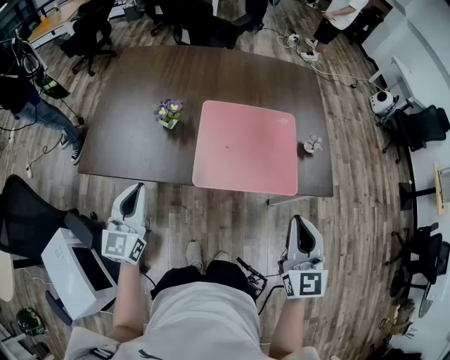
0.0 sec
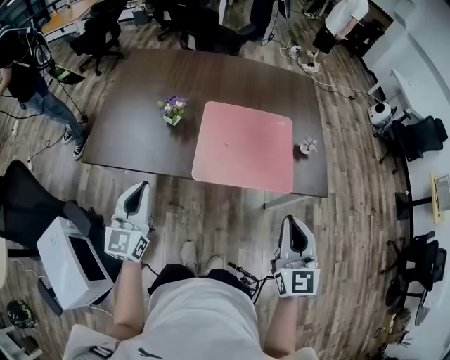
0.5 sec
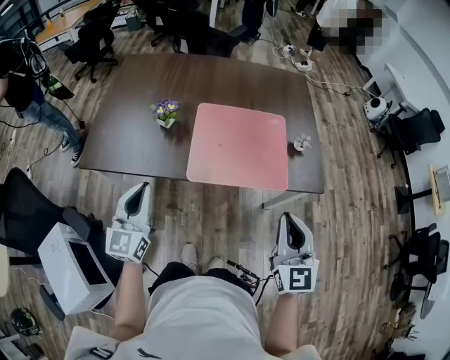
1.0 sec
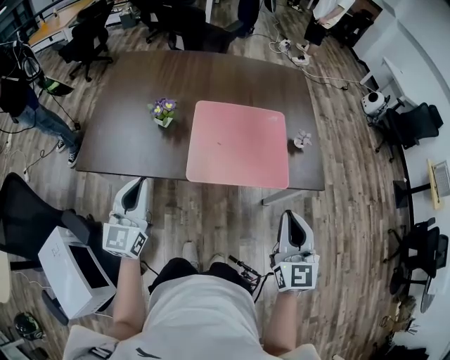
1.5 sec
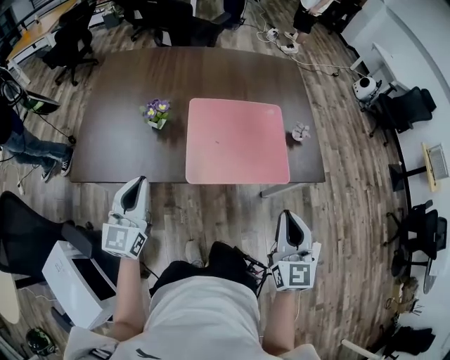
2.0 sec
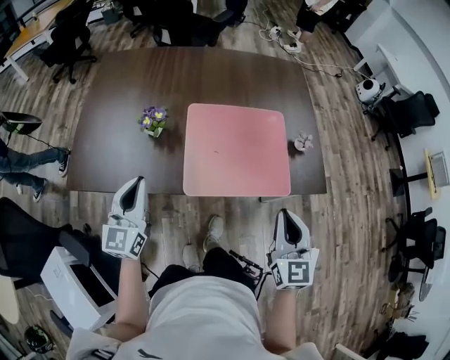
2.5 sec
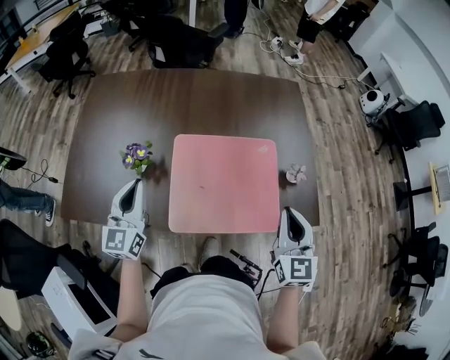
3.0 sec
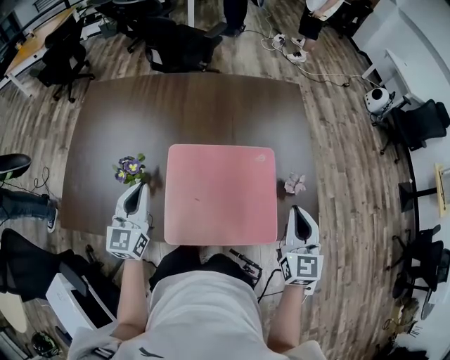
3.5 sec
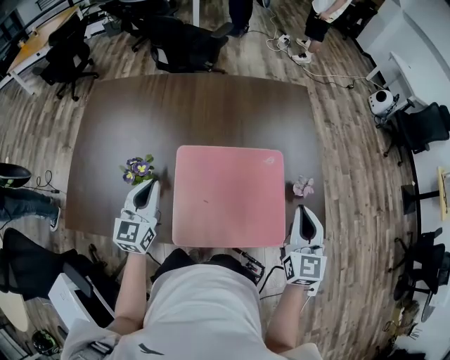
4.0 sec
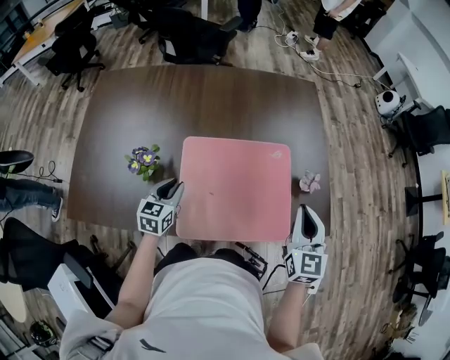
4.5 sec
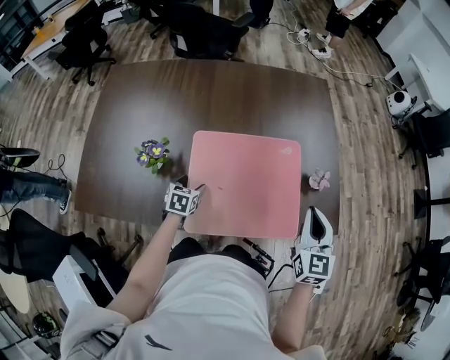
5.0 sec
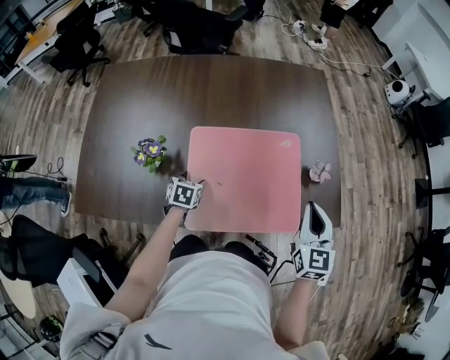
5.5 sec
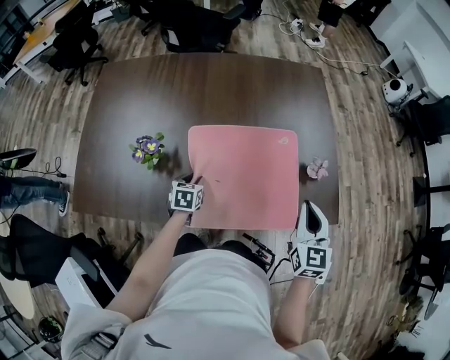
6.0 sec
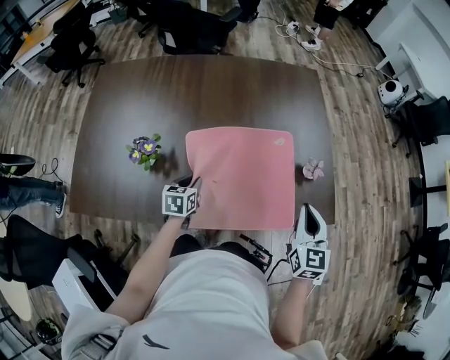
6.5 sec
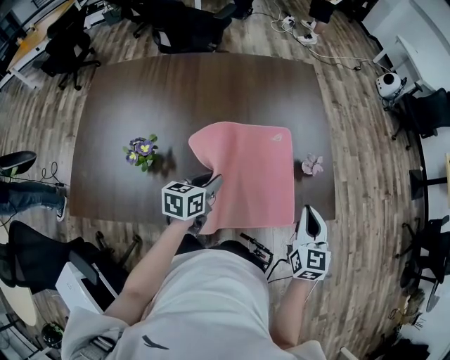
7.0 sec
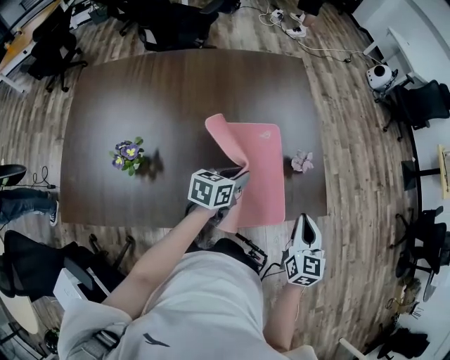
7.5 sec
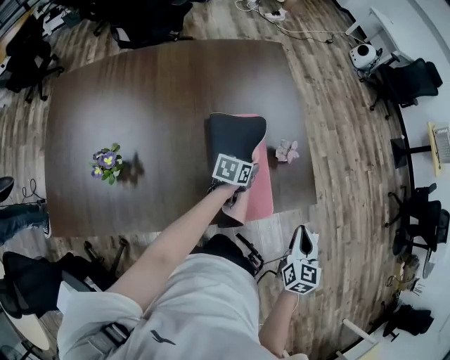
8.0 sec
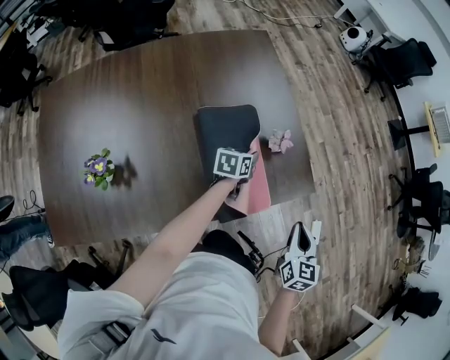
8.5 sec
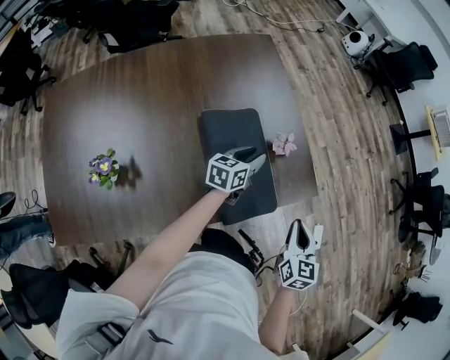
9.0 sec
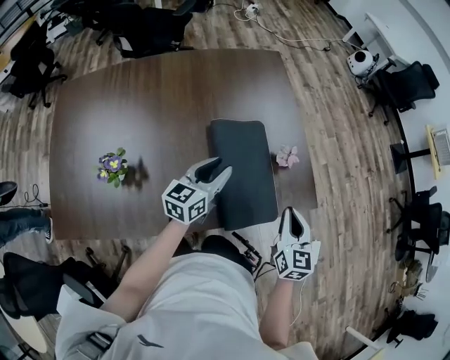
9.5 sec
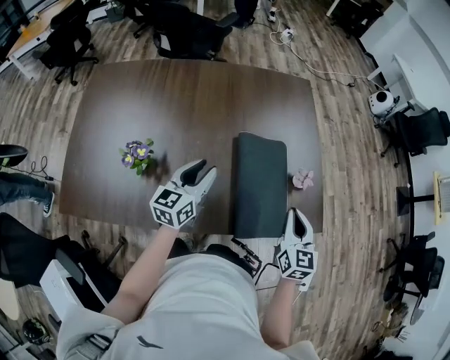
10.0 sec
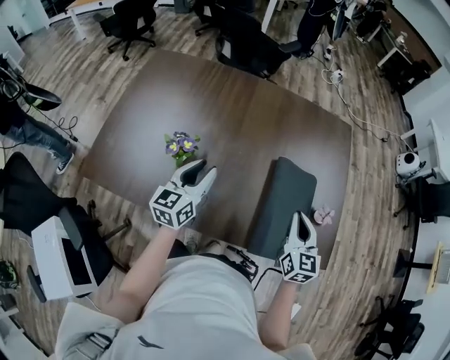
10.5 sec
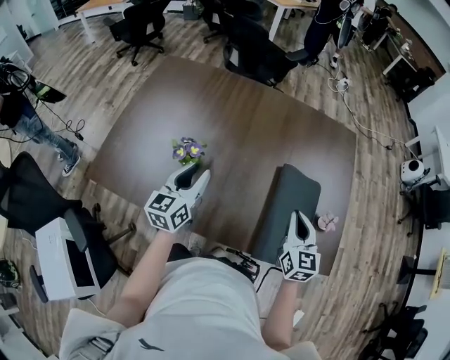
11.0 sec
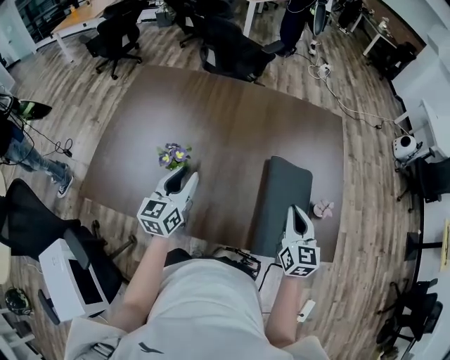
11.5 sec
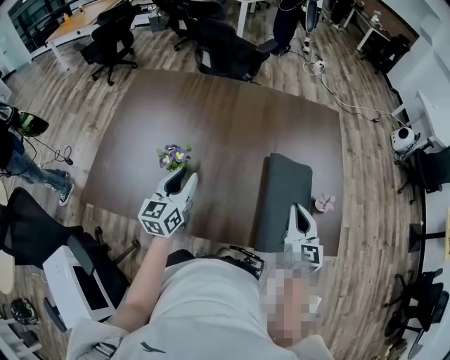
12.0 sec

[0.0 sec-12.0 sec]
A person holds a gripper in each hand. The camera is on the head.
2.0 sec to 4.0 sec: Both grippers travel together forward, about 25 cm.
4.0 sec to 6.0 sec: The left gripper heads downward, covering about 25 cm, angles its fingers downward, by about 40 degrees, and opens up. Meanwhile the right gripper moves downward, approximately 5 cm.
6.0 sec to 8.0 sec: The left gripper changes place by approximately 35 cm, and turns by approximately 40 degrees. Meanwhile the right gripper ends up approximately 15 cm from where it was, and changes its angle by some 30 degrees.
8.0 sec to 10.0 sec: The left gripper ends up some 30 cm from where it was, and turns by approximately 40 degrees, while the right gripper shifts by approximately 15 cm, and turns by about 20 degrees.
10.0 sec to 12.0 sec: The right gripper goes approximately 10 cm to the left. The left gripper goes about 15 cm to the left, and swivels roughly 20 degrees.

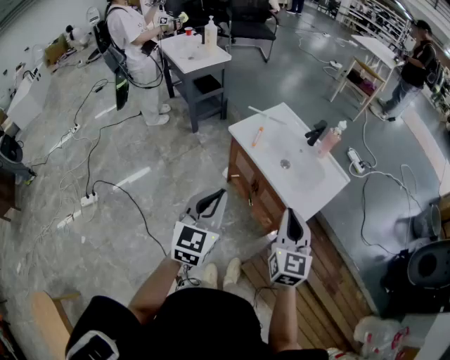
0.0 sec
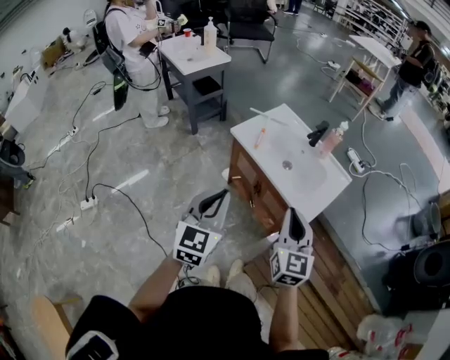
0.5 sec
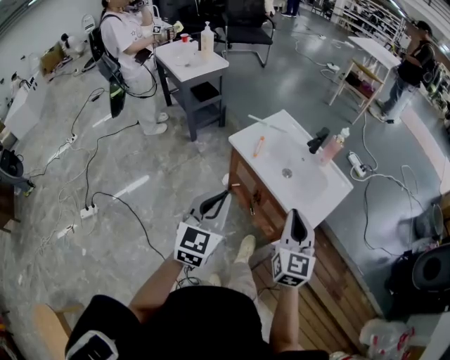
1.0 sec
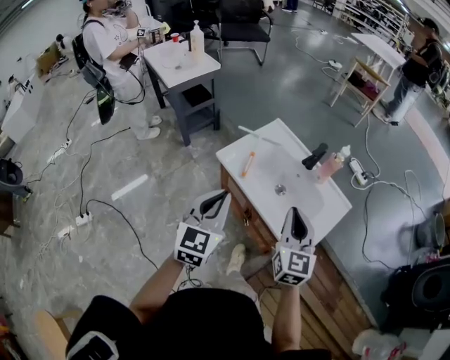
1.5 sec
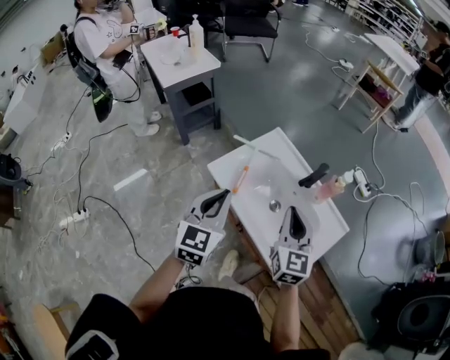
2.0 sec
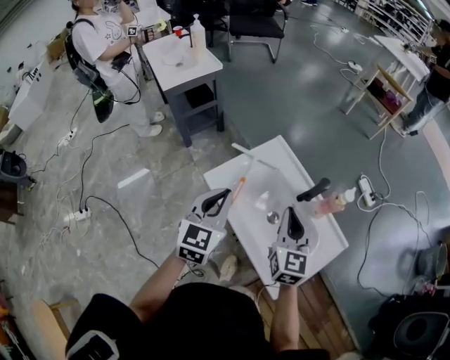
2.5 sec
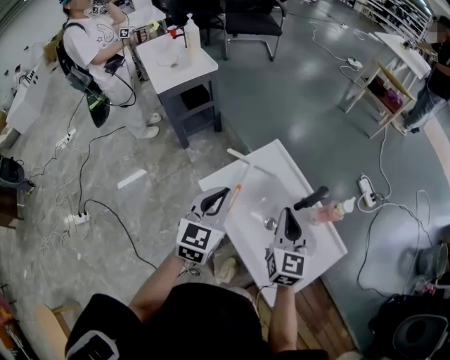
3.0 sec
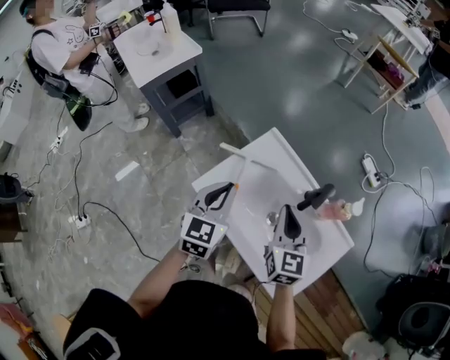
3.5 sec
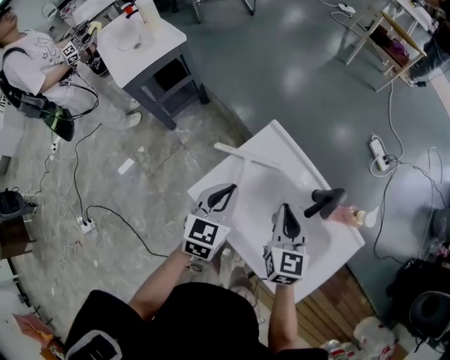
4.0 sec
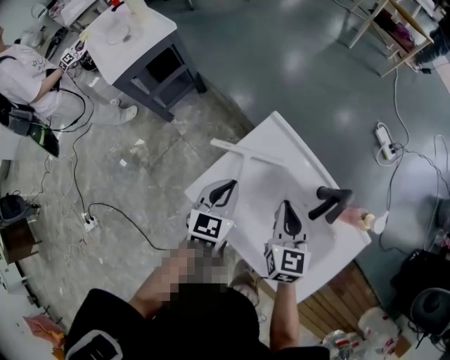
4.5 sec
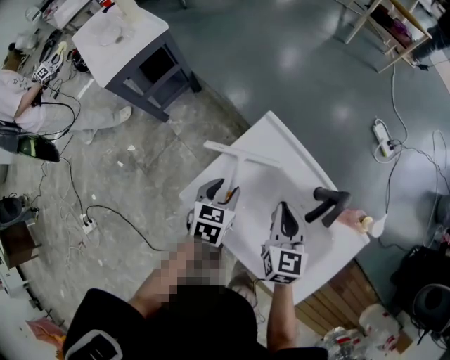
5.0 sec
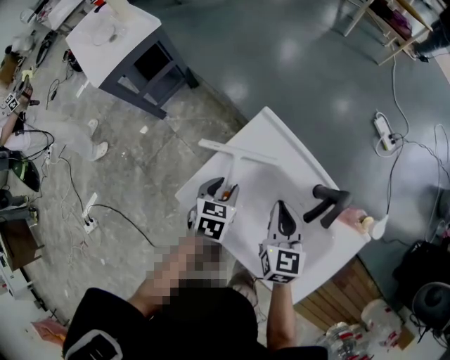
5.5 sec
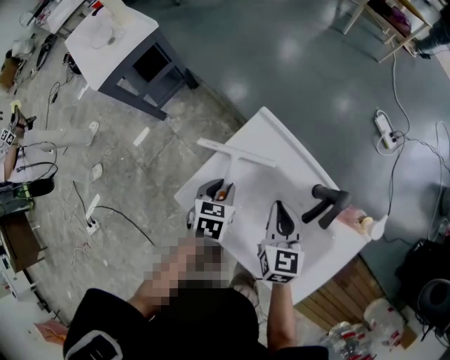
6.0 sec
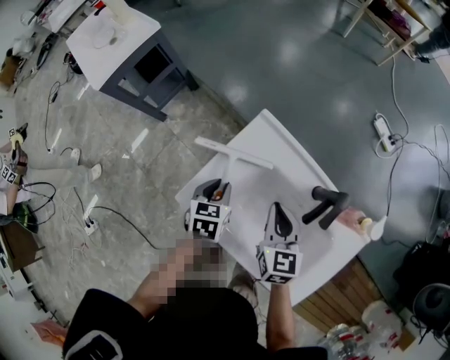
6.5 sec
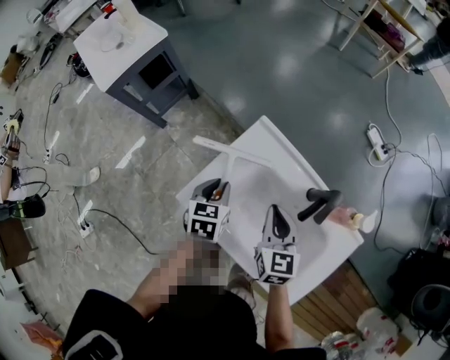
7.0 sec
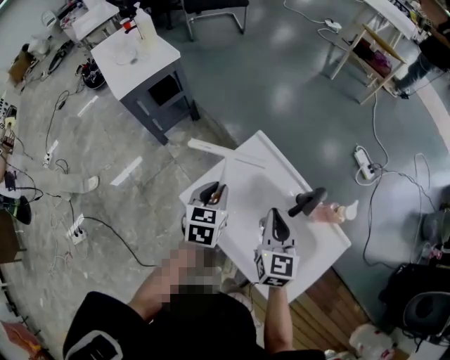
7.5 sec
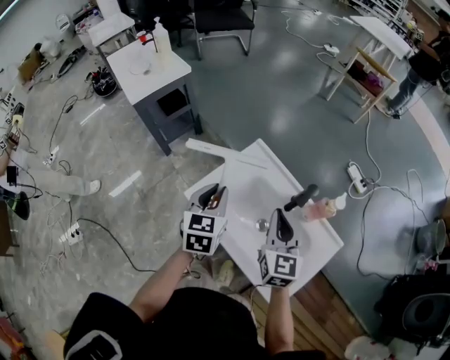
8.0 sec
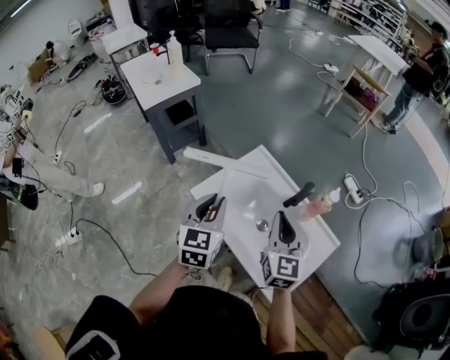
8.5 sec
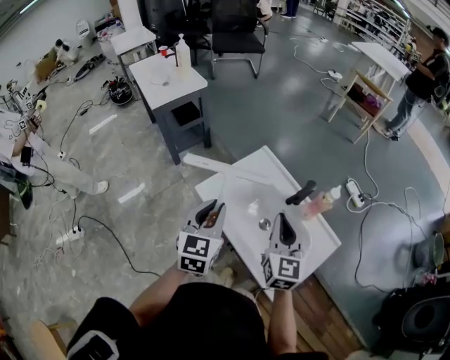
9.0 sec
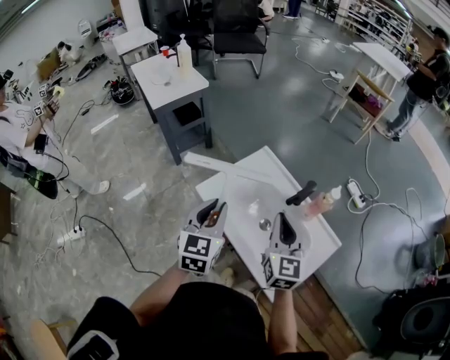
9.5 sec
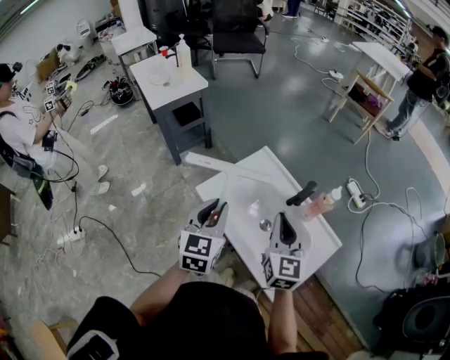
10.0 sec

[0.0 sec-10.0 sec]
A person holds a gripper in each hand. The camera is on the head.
0.0 sec to 2.0 sec: The two grippers go about 30 cm forward.
2.0 sec to 4.0 sec: Both grippers move forward and downward, approximately 25 cm.
4.0 sec to 6.0 sec: The left gripper goes approximately 15 cm downward, turns by roughly 30 degrees, and opens its fingers; the right gripper heads downward, covering approximately 5 cm.
6.0 sec to 8.0 sec: The right gripper is displaced upward and backward by approximately 20 cm. The left gripper goes some 20 cm upward, and turns by some 30 degrees.
8.0 sec to 10.0 sec: The right gripper moves backward, roughly 10 cm. Meanwhile the left gripper moves backward and upward, about 15 cm.

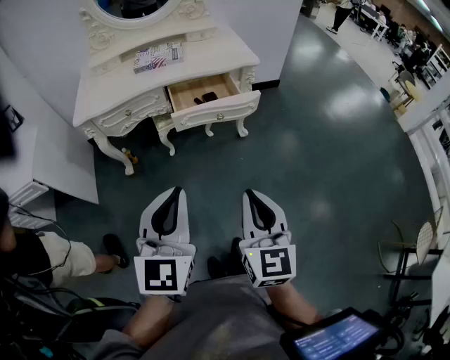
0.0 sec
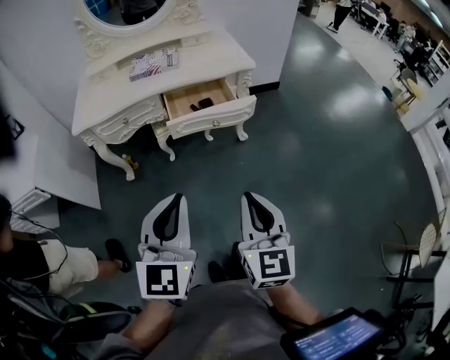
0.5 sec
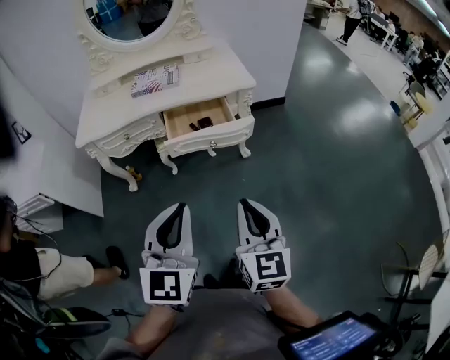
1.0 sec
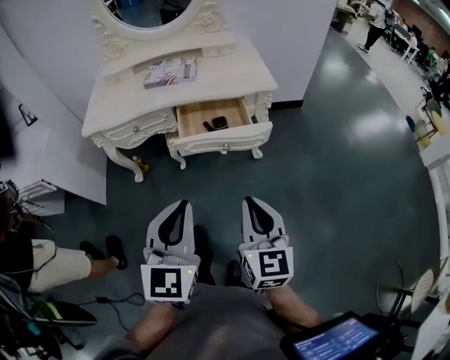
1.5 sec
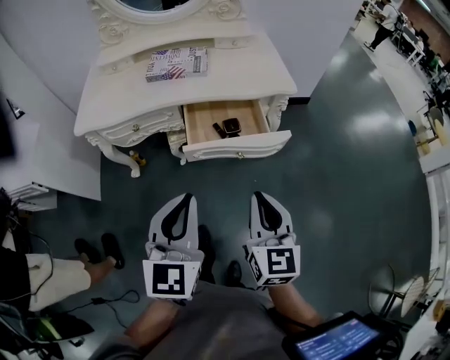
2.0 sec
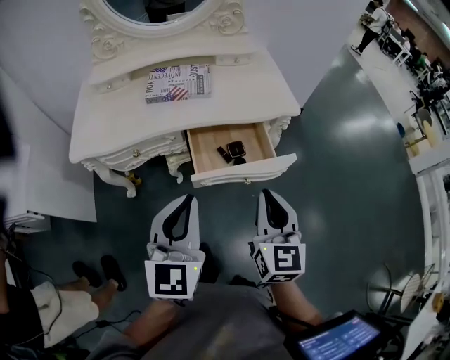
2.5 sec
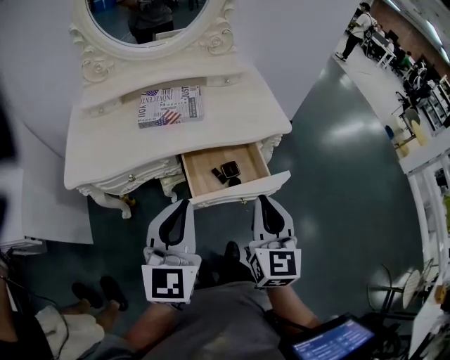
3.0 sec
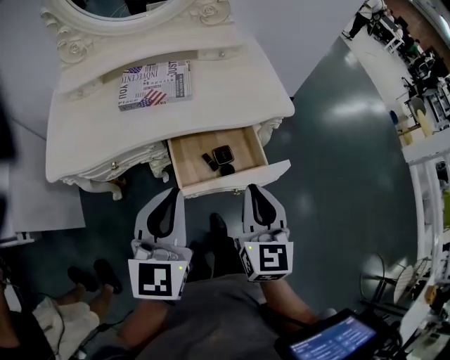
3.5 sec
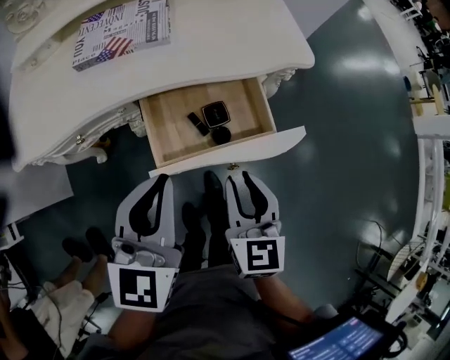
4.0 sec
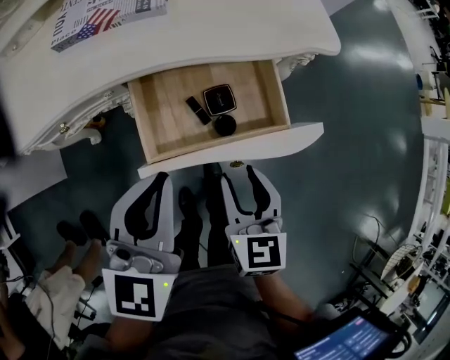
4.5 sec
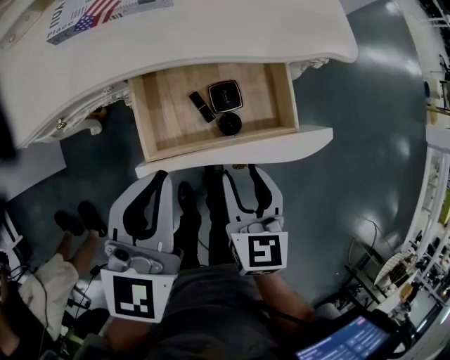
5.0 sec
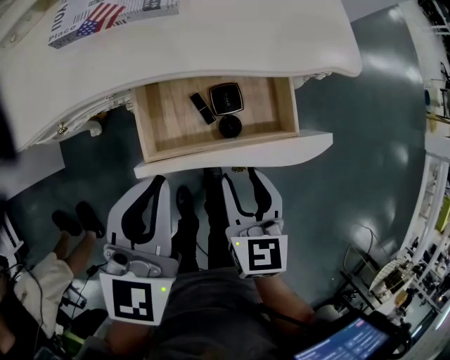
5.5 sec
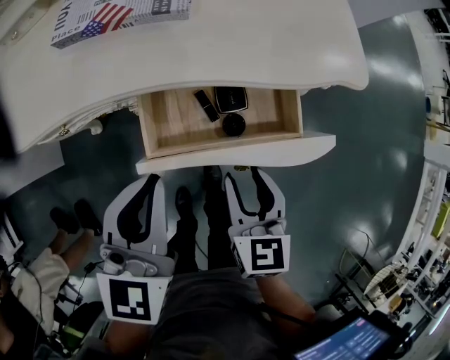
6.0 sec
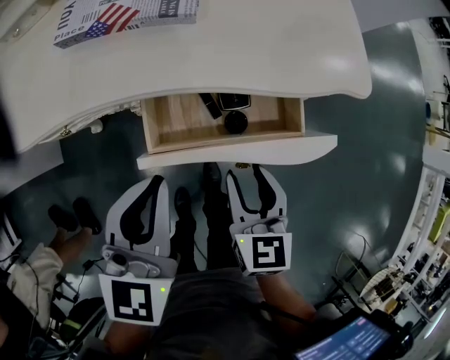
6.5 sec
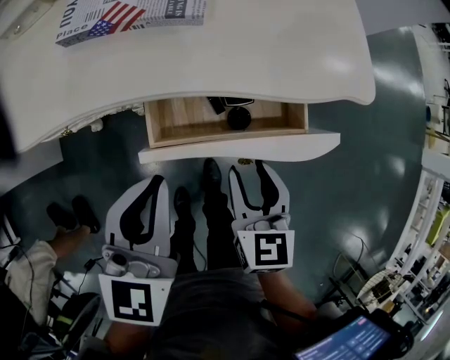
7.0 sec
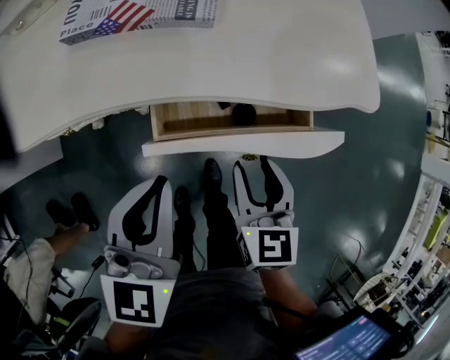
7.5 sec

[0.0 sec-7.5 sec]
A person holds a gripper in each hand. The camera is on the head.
0.0 sec to 2.0 sec: The grippers both shift forward by about 20 cm.
2.0 sec to 4.0 sec: The two grippers go approximately 20 cm forward and downward.
4.0 sec to 5.5 sec: The grippers both shift downward by some 5 cm. The right gripper opens its fingers.
5.5 sec to 7.5 sec: The left gripper shifts by some 5 cm, while the right gripper moves forward, approximately 5 cm.
